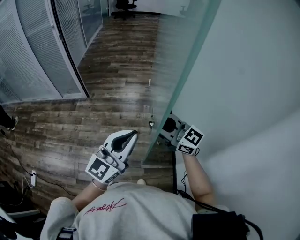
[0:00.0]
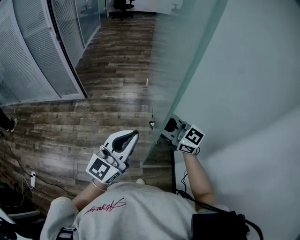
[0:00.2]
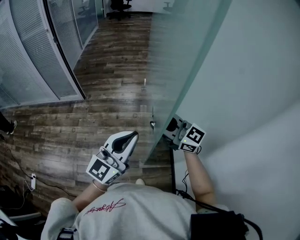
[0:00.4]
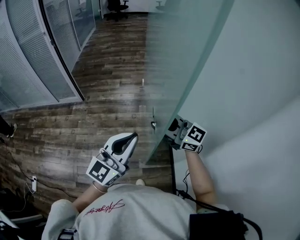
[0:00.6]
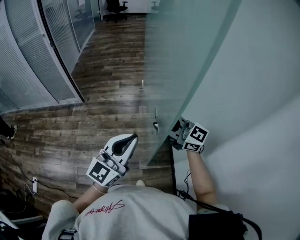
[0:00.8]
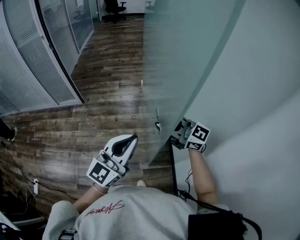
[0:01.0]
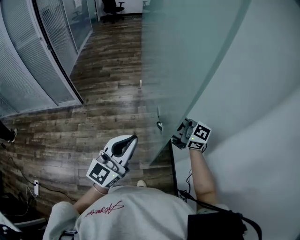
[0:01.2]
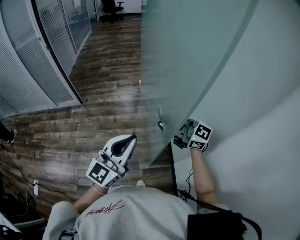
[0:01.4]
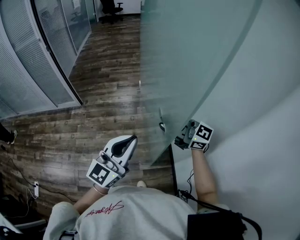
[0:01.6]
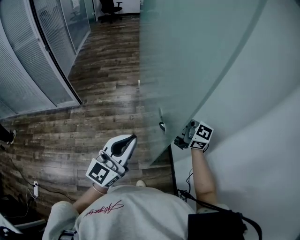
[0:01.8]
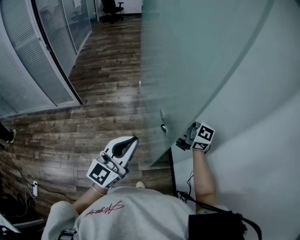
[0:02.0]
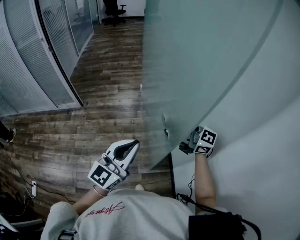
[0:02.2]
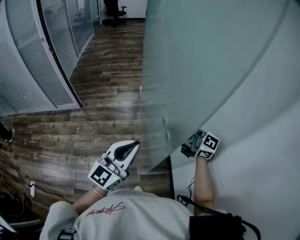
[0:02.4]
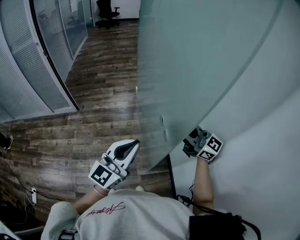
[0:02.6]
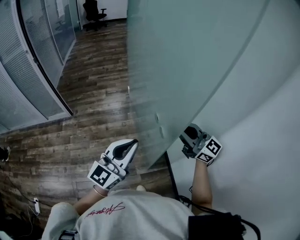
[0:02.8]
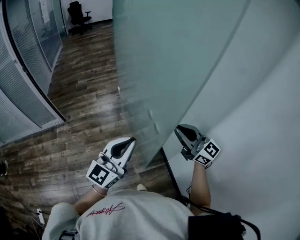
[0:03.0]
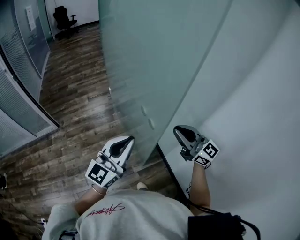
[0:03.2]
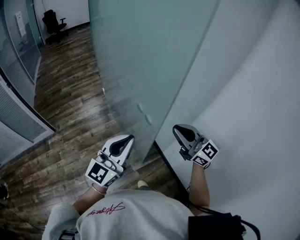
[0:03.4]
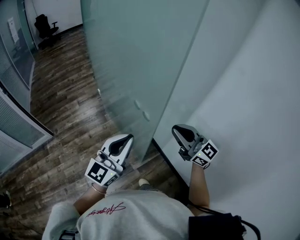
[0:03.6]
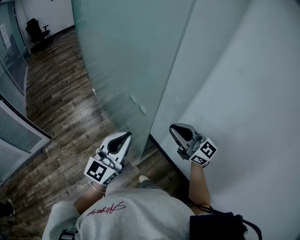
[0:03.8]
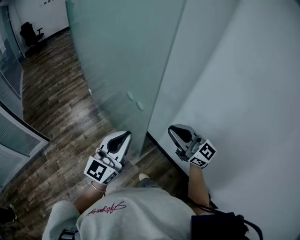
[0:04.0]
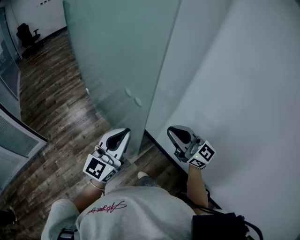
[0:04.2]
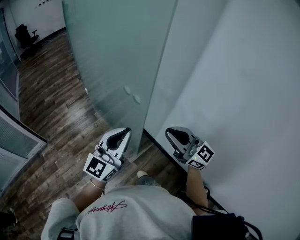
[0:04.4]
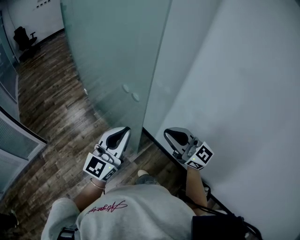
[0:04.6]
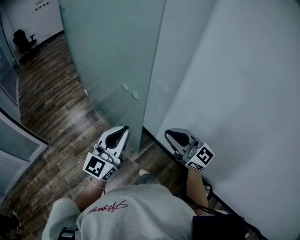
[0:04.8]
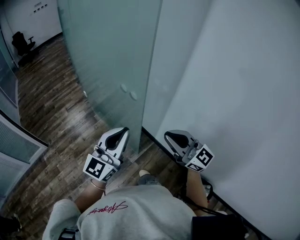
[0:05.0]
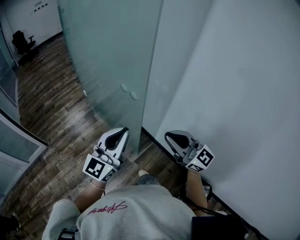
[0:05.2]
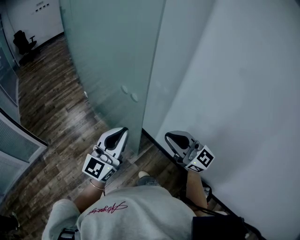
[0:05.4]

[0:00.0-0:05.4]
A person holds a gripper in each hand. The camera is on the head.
0:00.0 to 0:01.4: The left gripper travels to the right by roughly 5 cm. The right gripper shifts approximately 10 cm to the right.
0:01.4 to 0:02.8: The right gripper heads to the right, covering some 5 cm, and swivels roughly 20 degrees.
0:02.8 to 0:04.0: The right gripper shifts by some 15 cm, and changes its angle by approximately 30 degrees. The left gripper changes place by approximately 5 cm, and turns by about 20 degrees.
0:04.0 to 0:05.4: The right gripper travels backward by approximately 10 cm.

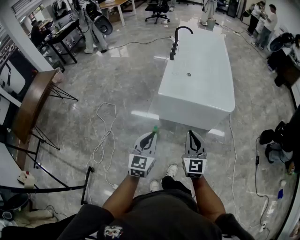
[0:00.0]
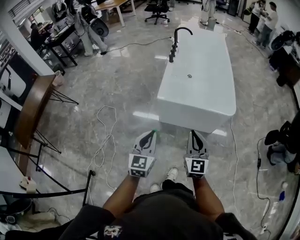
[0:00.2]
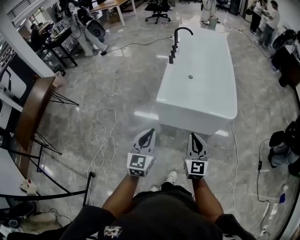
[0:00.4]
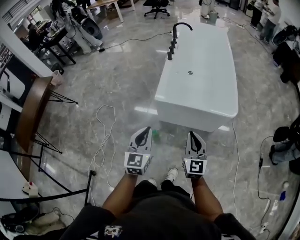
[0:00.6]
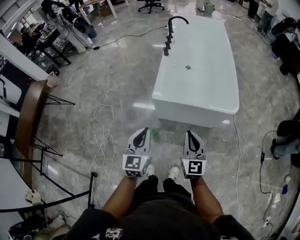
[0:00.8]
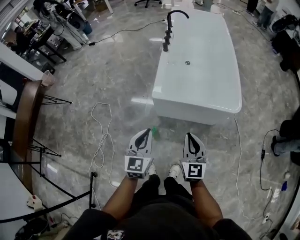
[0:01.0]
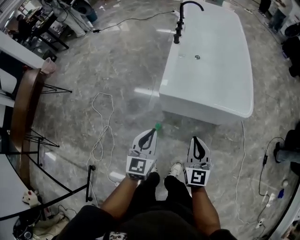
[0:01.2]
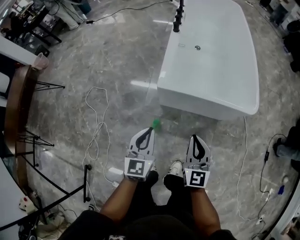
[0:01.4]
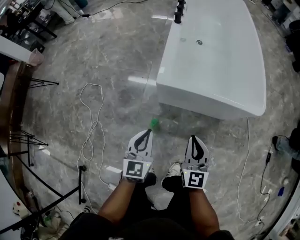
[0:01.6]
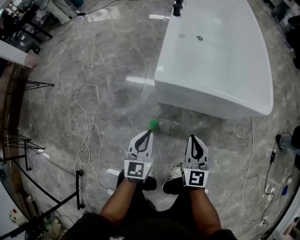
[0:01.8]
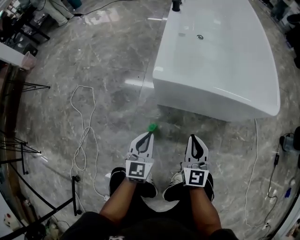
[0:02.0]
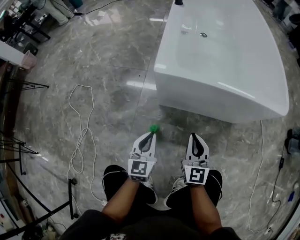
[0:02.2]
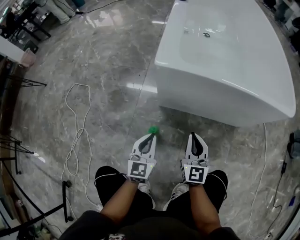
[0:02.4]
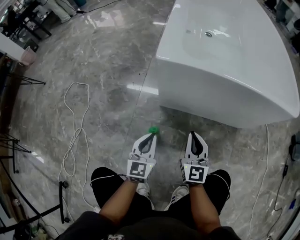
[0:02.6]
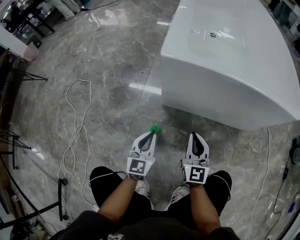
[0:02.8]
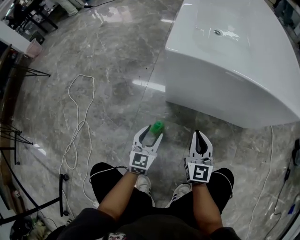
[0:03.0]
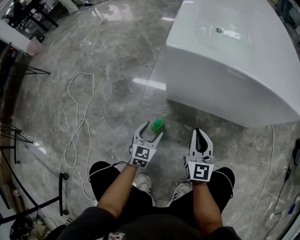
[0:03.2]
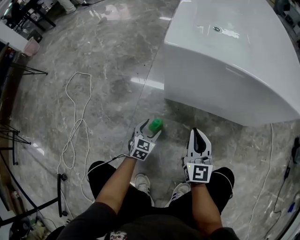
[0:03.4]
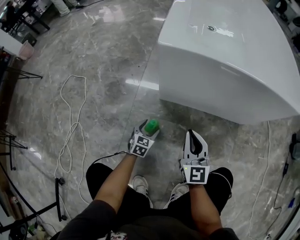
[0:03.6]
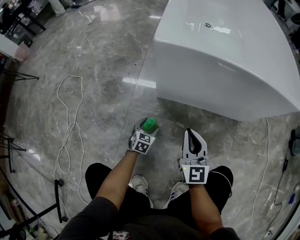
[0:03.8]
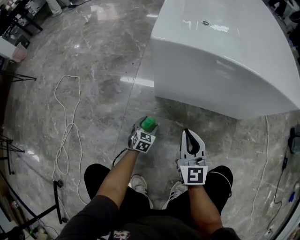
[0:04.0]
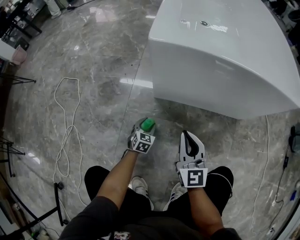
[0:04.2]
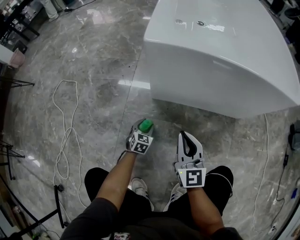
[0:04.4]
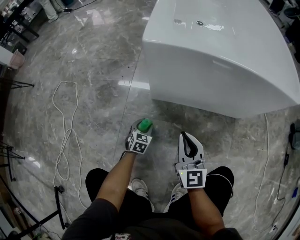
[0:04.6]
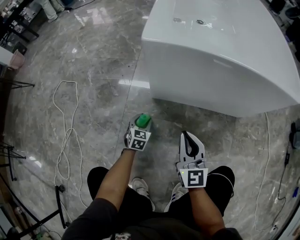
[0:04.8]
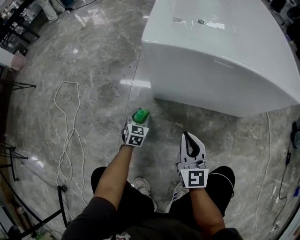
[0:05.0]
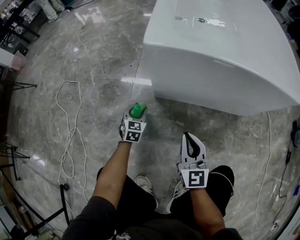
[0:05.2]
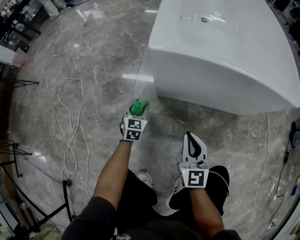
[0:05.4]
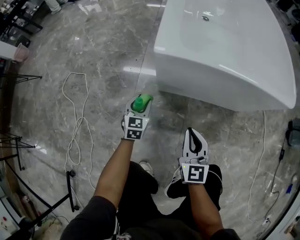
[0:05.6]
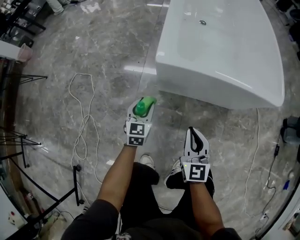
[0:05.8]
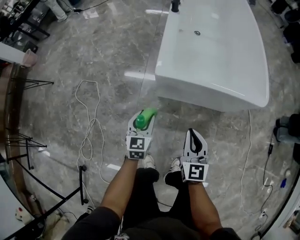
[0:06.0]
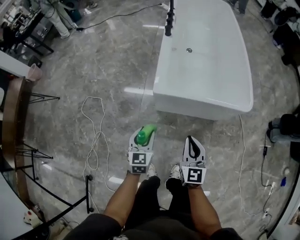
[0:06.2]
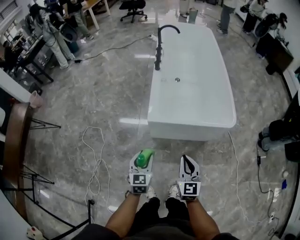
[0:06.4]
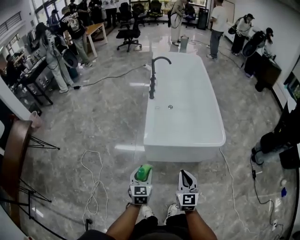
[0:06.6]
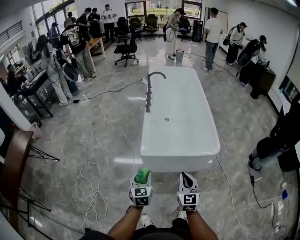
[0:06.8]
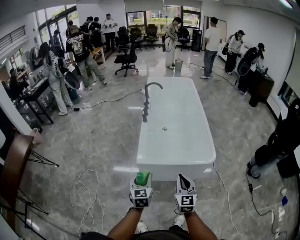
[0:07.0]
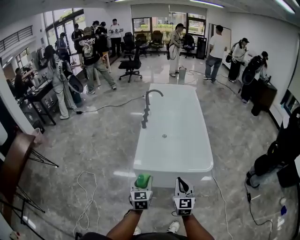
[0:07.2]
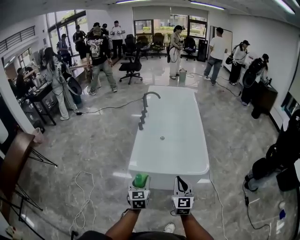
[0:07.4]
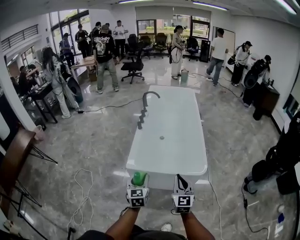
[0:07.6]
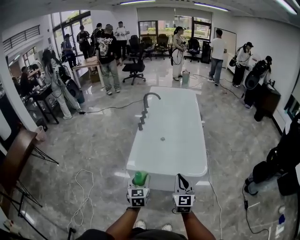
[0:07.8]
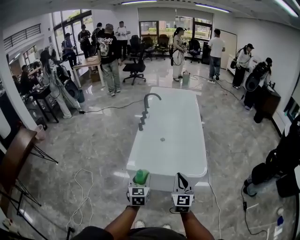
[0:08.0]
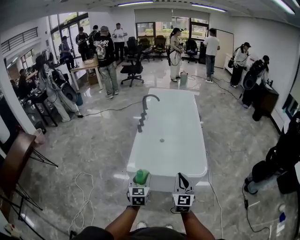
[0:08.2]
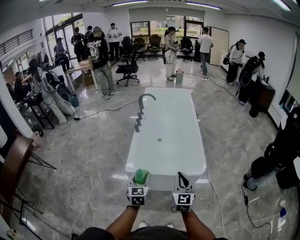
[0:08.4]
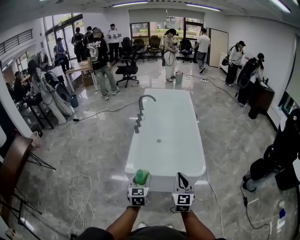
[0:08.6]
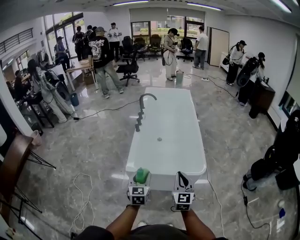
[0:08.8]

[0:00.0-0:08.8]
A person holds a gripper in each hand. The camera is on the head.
0:00.0 to 0:01.4: The grippers both shift forward and downward by some 30 cm.
0:01.4 to 0:03.0: Both grippers travel together downward, approximately 50 cm. The left gripper opens its fingers.
0:03.0 to 0:04.4: The left gripper is displaced downward by roughly 20 cm, and changes its angle by roughly 30 degrees.
0:04.4 to 0:05.8: The right gripper travels upward by roughly 20 cm. The left gripper is displaced upward by about 35 cm.
0:05.8 to 0:07.4: The right gripper shifts roughly 50 cm upward and to the right. The left gripper heads upward, covering about 60 cm.
0:07.4 to 0:08.8: The grippers make only small movements.

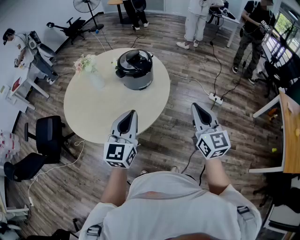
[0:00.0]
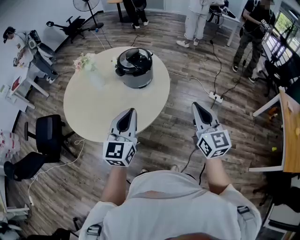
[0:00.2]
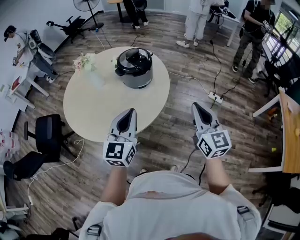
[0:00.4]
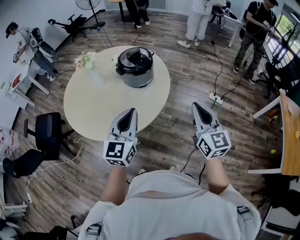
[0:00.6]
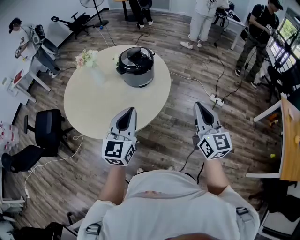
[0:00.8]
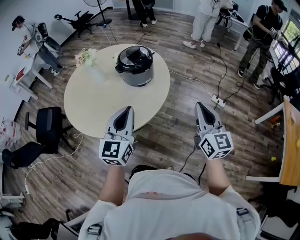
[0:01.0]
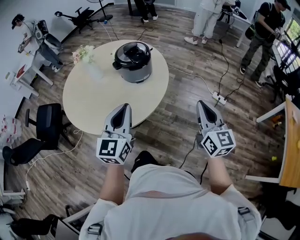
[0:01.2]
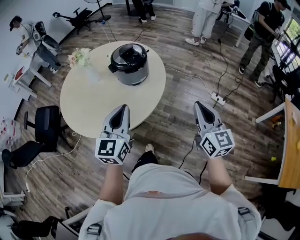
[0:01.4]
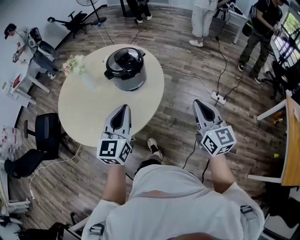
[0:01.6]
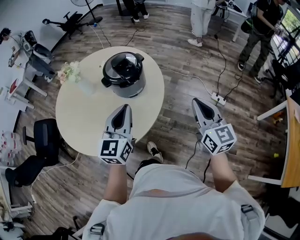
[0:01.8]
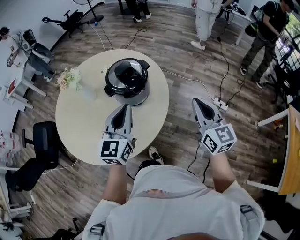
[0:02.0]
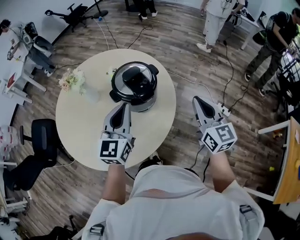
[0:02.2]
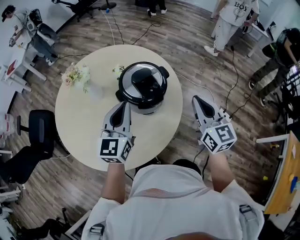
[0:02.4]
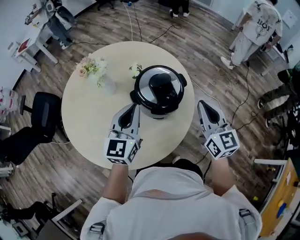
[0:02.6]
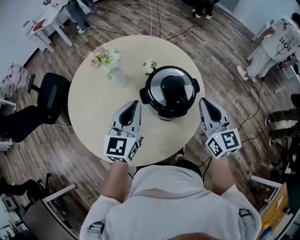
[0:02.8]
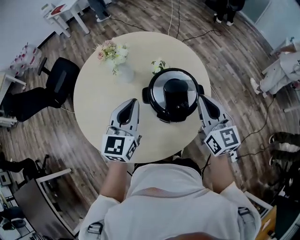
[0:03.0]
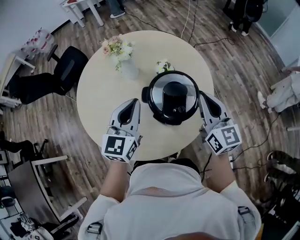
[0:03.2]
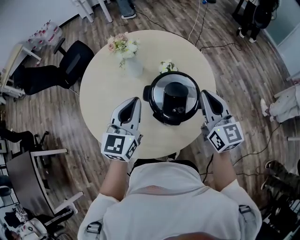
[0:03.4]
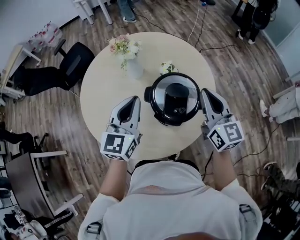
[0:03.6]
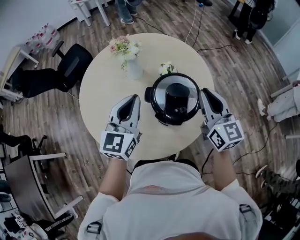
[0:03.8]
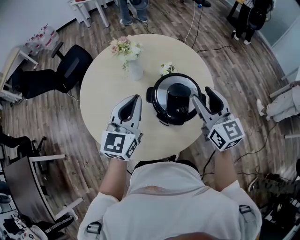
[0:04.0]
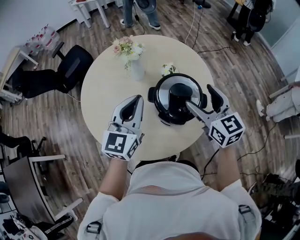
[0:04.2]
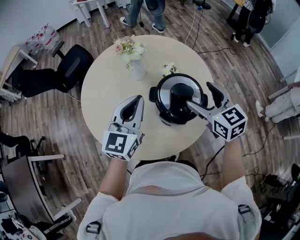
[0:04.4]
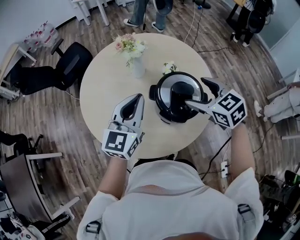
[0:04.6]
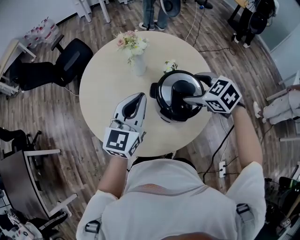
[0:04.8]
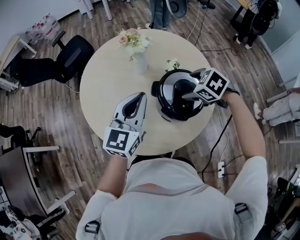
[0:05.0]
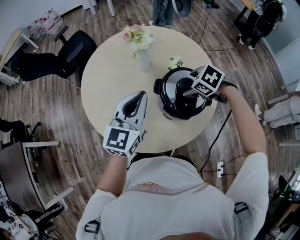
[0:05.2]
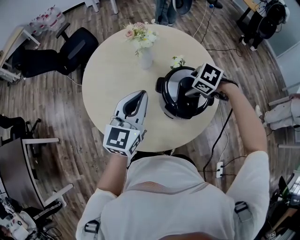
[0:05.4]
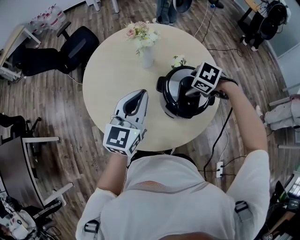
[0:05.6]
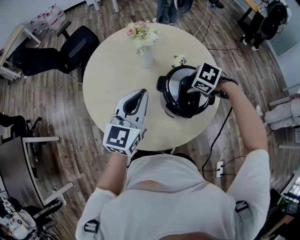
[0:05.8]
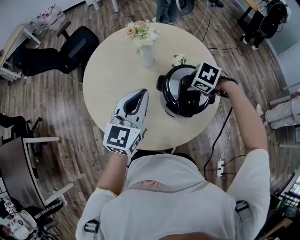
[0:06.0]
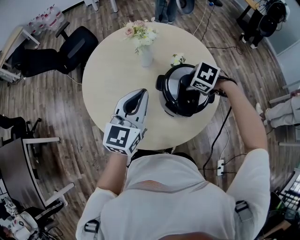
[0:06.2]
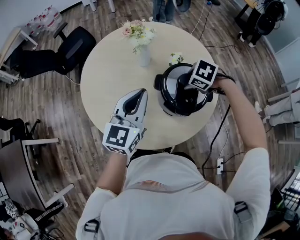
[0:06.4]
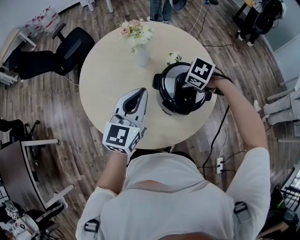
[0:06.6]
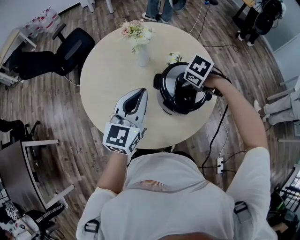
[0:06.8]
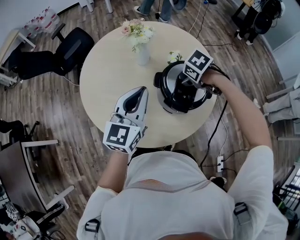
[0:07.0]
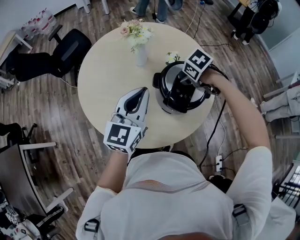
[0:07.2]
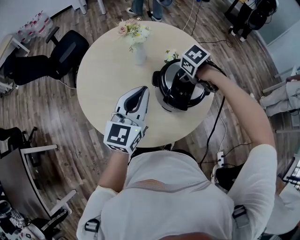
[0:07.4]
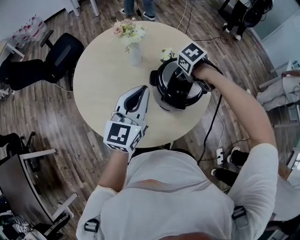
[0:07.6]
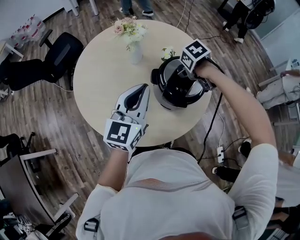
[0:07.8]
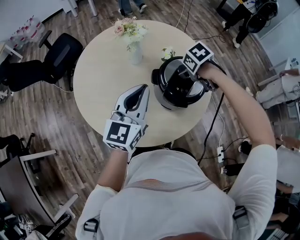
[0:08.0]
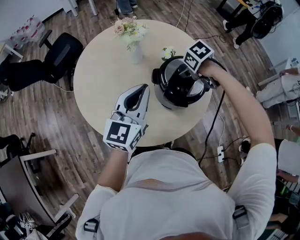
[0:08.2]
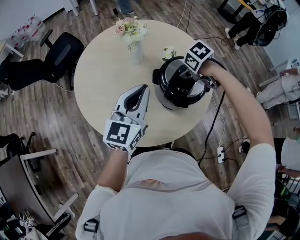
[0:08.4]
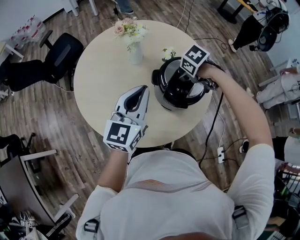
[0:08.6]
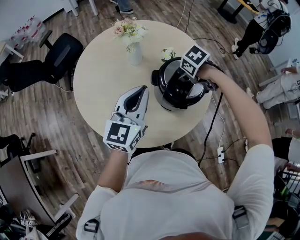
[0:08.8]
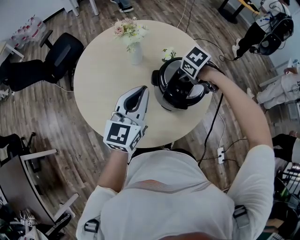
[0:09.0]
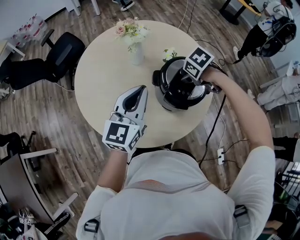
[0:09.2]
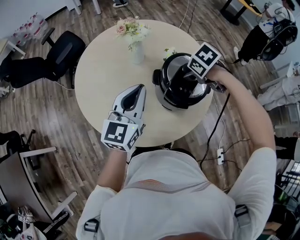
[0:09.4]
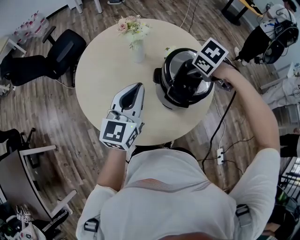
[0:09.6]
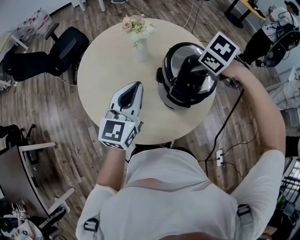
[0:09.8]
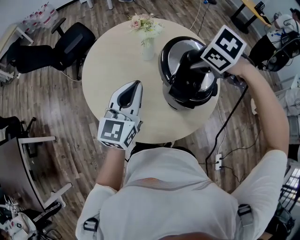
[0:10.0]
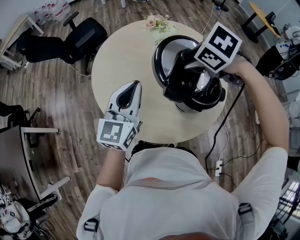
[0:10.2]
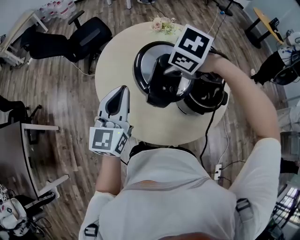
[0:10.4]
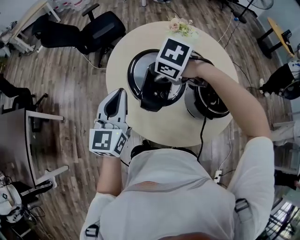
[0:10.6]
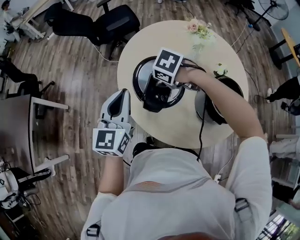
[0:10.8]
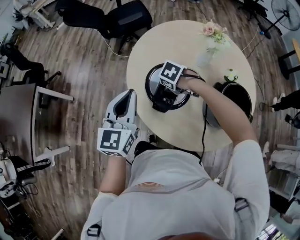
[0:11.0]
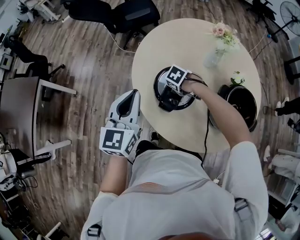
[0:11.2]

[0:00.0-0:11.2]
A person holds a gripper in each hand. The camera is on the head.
0:00.0 to 0:01.6: The right gripper goes approximately 10 cm to the right and forward. Meanwhile the left gripper is displaced forward and to the right by some 10 cm.
0:01.6 to 0:03.2: The left gripper changes place by roughly 35 cm, and turns by about 40 degrees, while the right gripper shifts by some 50 cm, and changes its angle by about 40 degrees.
0:03.2 to 0:04.8: The right gripper goes approximately 10 cm to the left and downward, tilts its fingers roughly 50 degrees downward, and opens its fingers.
0:04.8 to 0:06.4: The right gripper travels downward by about 10 cm, turns by about 30 degrees, and closes.
0:06.4 to 0:08.0: The right gripper changes its angle by about 40 degrees.
0:08.0 to 0:09.6: The right gripper is displaced upward by about 5 cm.
0:09.6 to 0:11.2: The left gripper shifts by approximately 25 cm, and turns by some 40 degrees. Meanwhile the right gripper shifts by roughly 40 cm, and turns by some 40 degrees.
